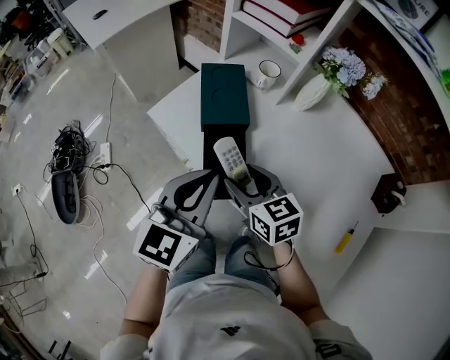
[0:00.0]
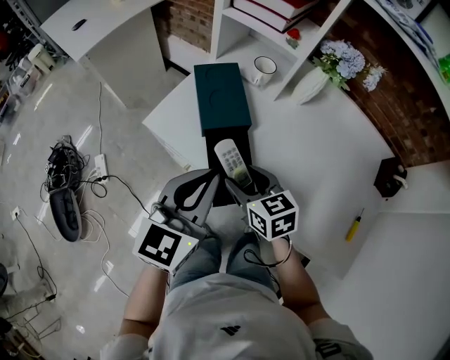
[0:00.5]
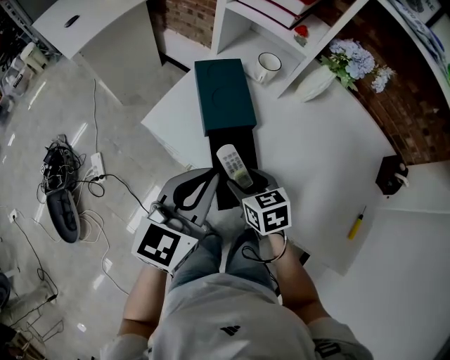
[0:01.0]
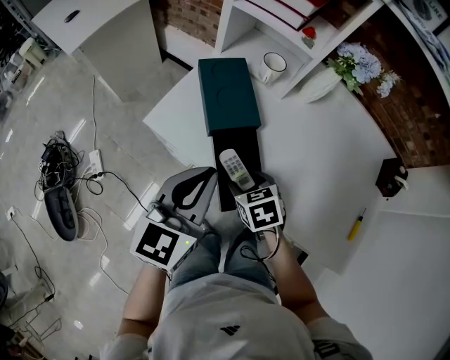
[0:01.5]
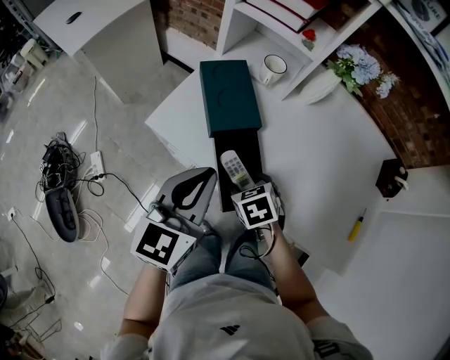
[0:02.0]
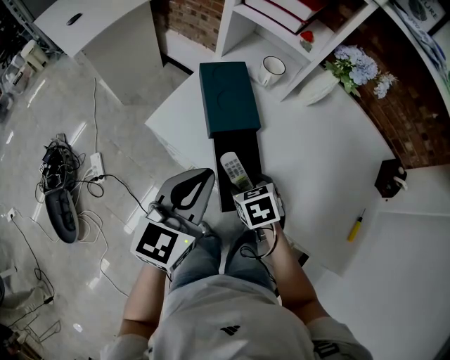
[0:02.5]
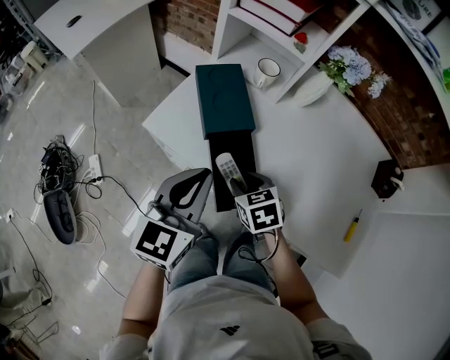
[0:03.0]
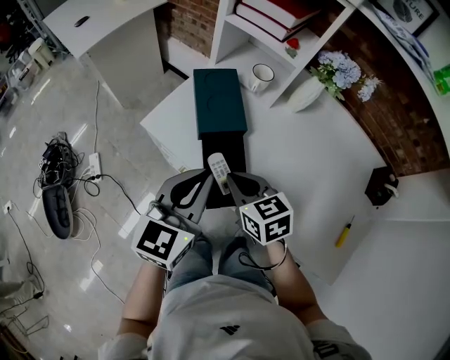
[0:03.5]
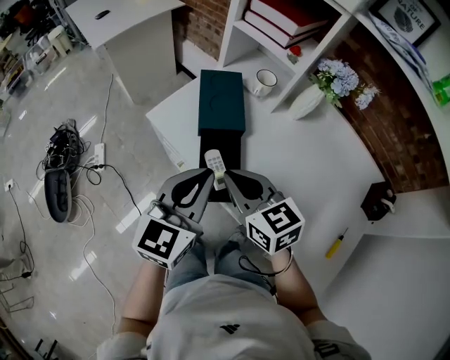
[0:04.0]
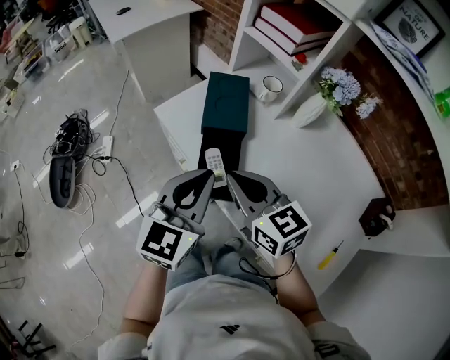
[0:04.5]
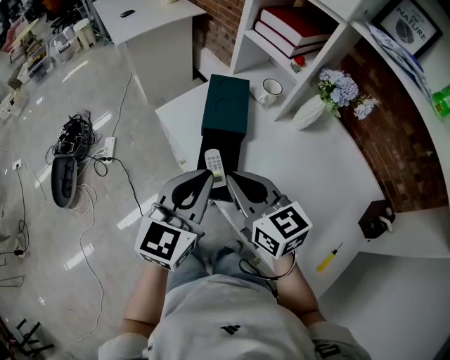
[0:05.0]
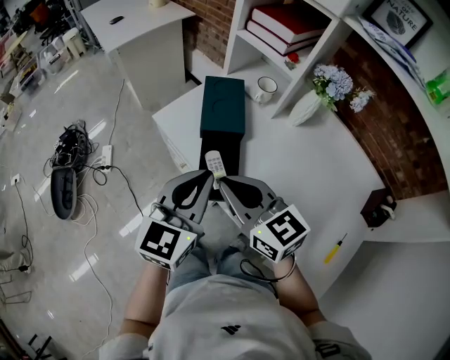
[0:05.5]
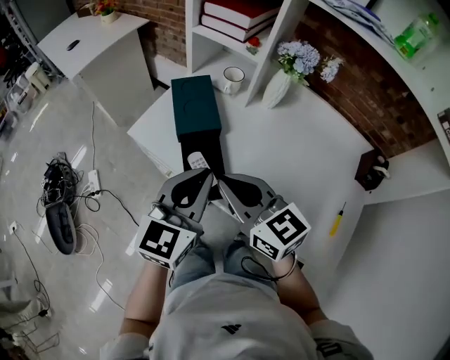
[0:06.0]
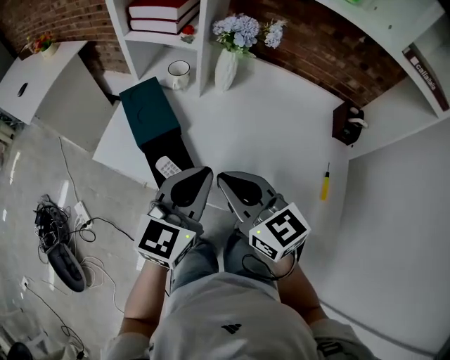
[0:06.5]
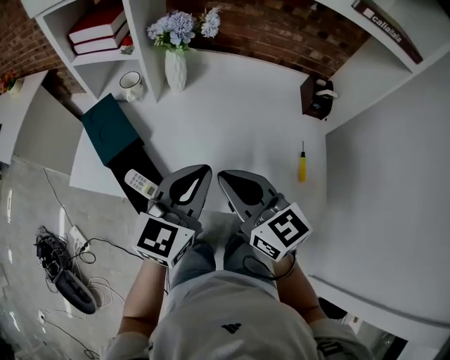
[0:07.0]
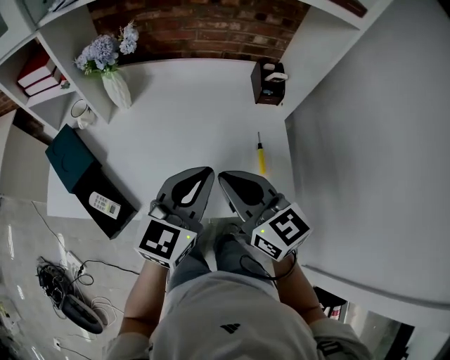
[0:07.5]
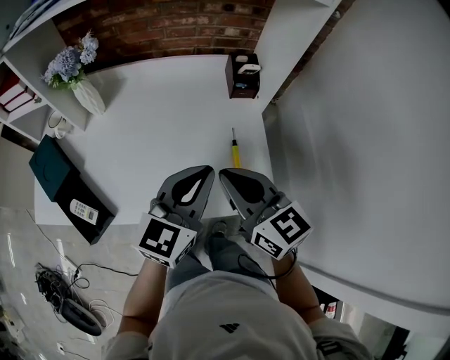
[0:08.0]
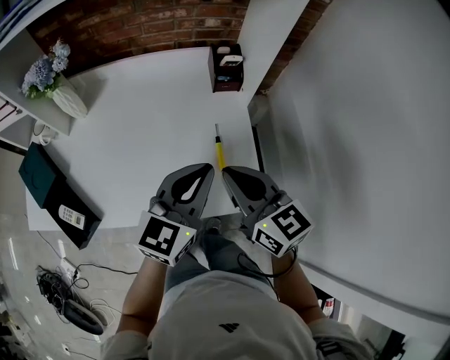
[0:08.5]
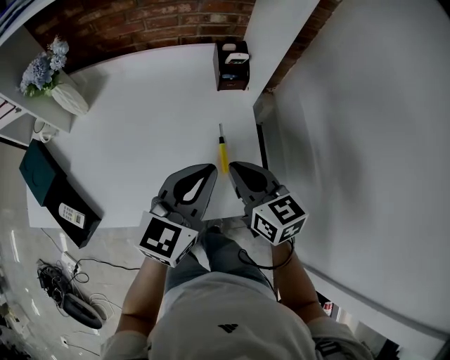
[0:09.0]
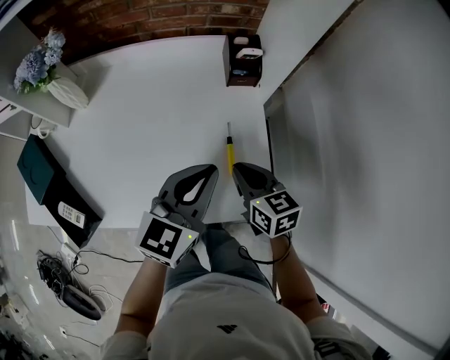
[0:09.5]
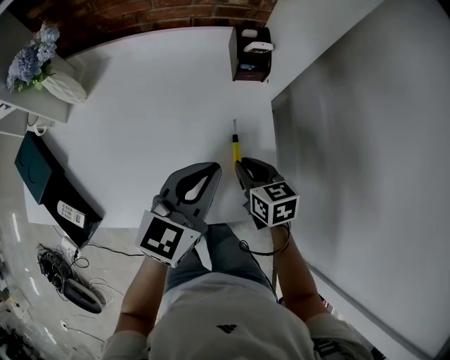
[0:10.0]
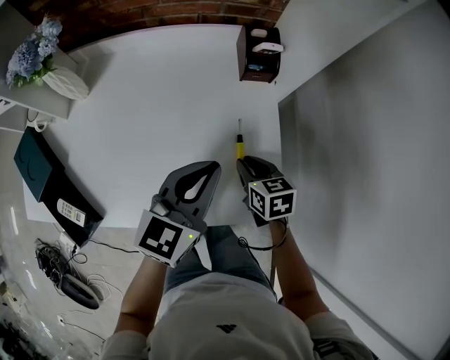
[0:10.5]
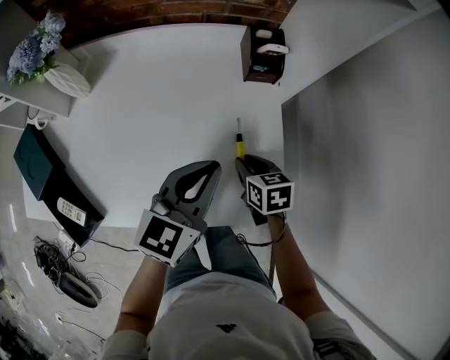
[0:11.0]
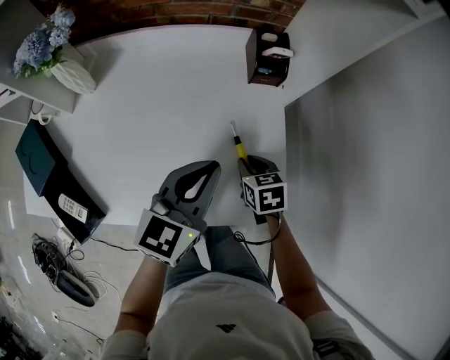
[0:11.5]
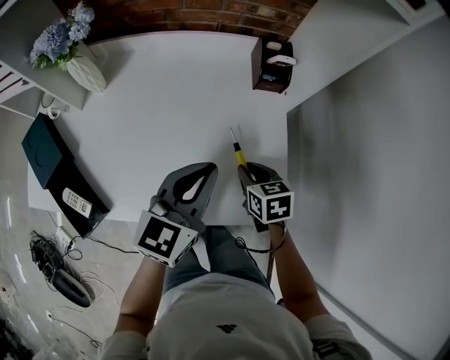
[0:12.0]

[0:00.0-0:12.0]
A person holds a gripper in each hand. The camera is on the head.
0:00.0 to 0:02.0: The right gripper moves downward, approximately 10 cm, and points its fingers about 30 degrees further downward; the left gripper moves to the left, approximately 5 cm.
0:02.0 to 0:04.0: The right gripper goes some 20 cm upward, tilts its fingers roughly 40 degrees upward, and closes, while the left gripper moves to the right, some 5 cm.
0:04.0 to 0:06.0: The right gripper goes about 5 cm upward.
0:06.0 to 0:08.0: The right gripper shifts by approximately 40 cm, and swivels roughly 40 degrees, while the left gripper changes place by roughly 40 cm, and rotates some 40 degrees.
0:08.0 to 0:10.0: The right gripper travels downward, to the right and forward by about 25 cm, and turns by about 30 degrees. The left gripper is displaced downward and forward by about 10 cm.
0:10.0 to 0:12.0: The left gripper travels to the left by roughly 5 cm.

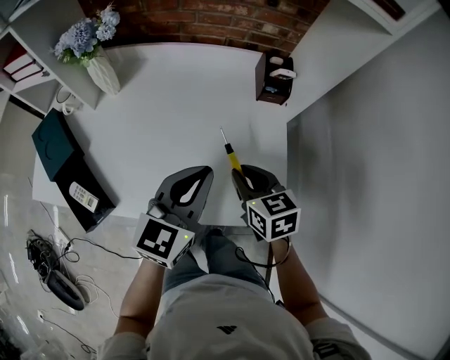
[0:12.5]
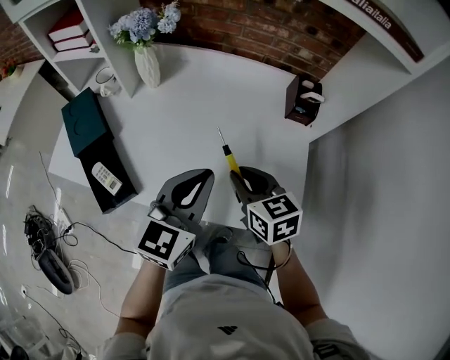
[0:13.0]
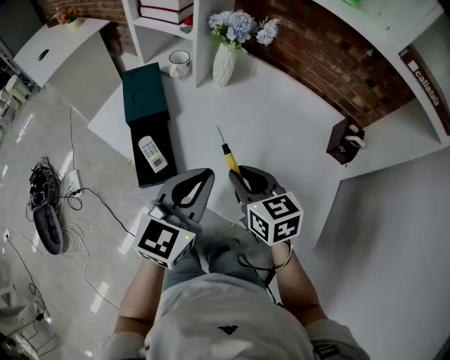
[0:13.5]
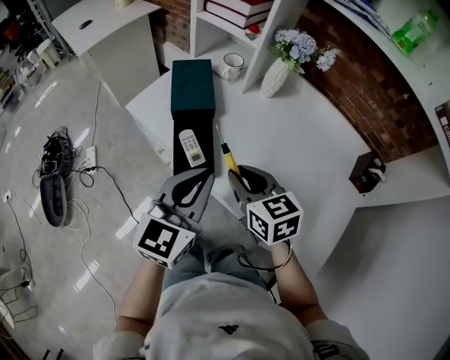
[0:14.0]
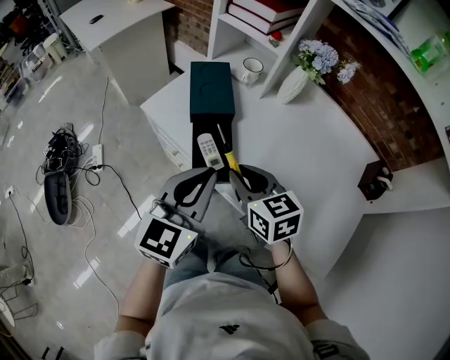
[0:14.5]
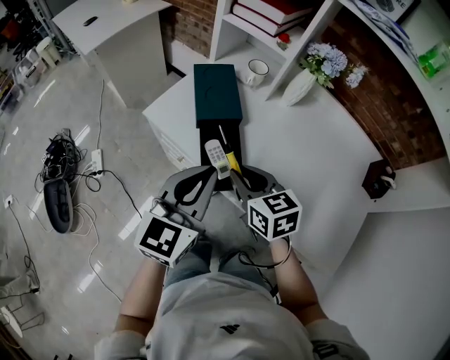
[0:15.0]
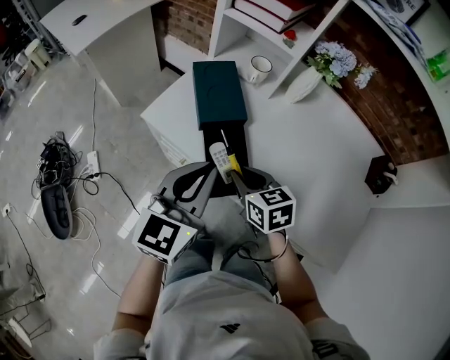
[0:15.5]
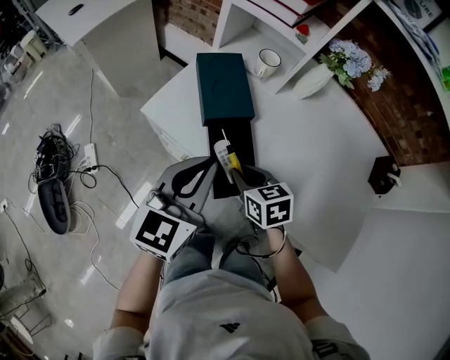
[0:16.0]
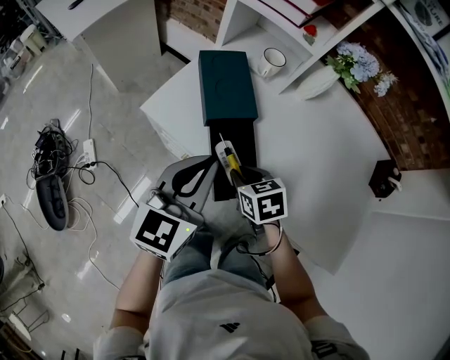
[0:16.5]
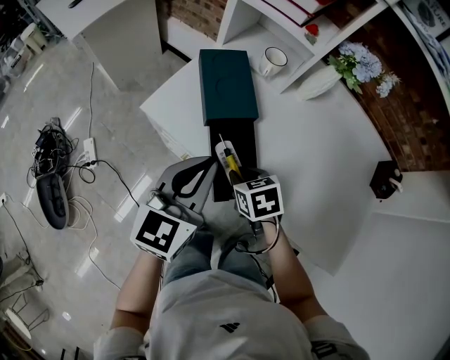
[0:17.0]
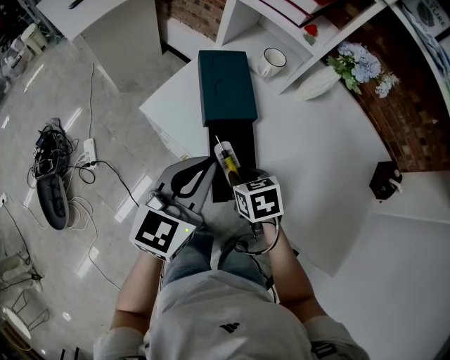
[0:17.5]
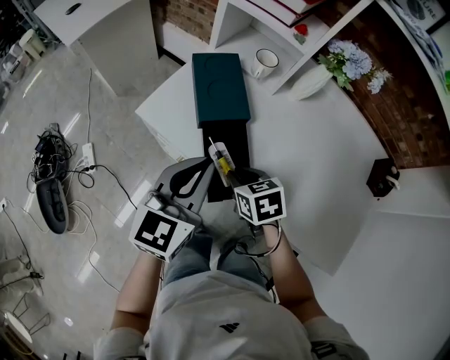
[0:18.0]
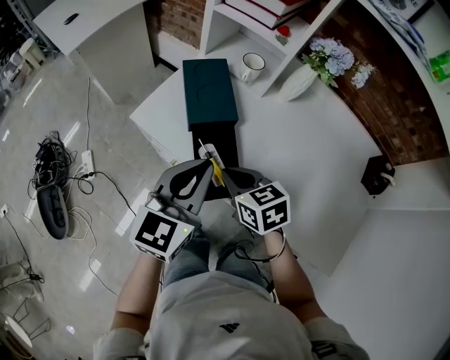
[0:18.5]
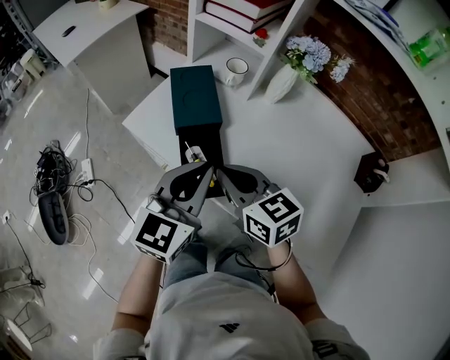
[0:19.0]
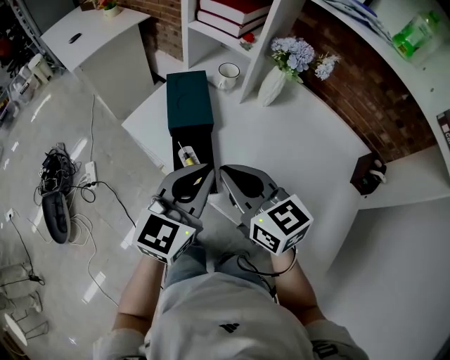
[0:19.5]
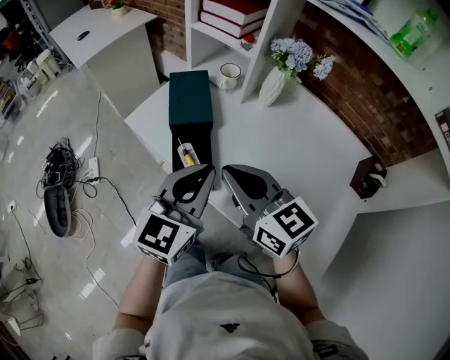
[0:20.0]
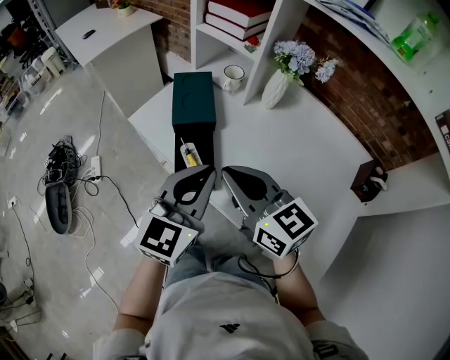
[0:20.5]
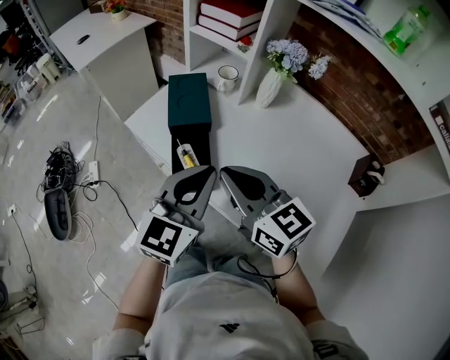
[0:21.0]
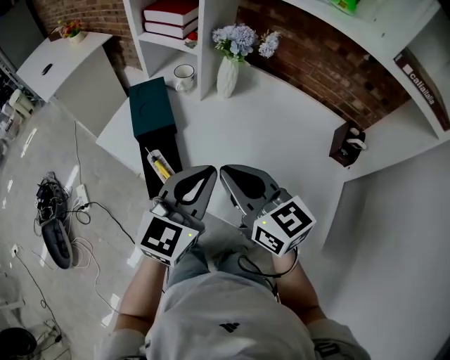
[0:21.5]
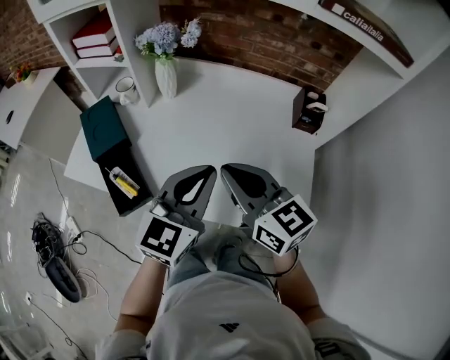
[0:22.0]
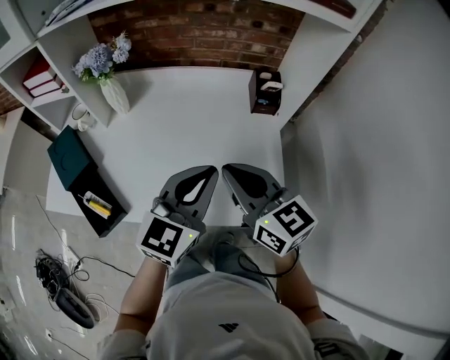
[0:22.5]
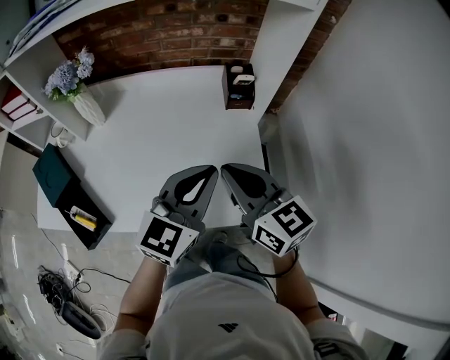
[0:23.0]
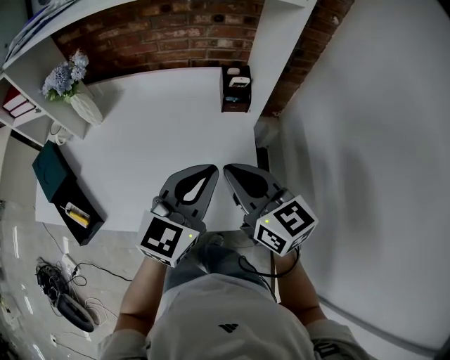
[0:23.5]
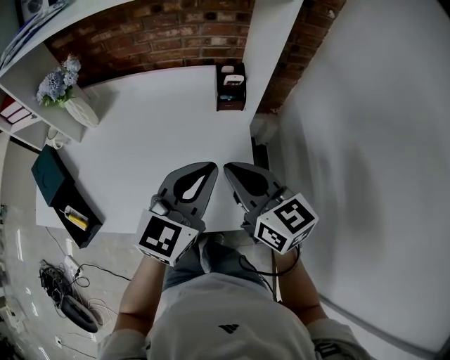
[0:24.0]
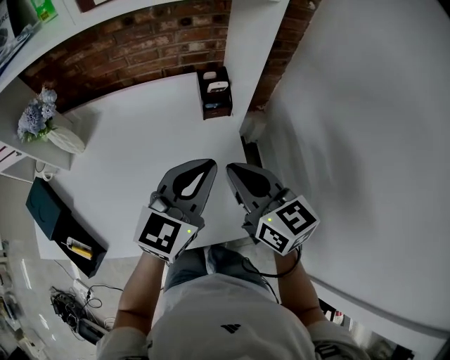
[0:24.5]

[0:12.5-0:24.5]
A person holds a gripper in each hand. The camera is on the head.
0:12.5 to 0:14.5: The right gripper moves roughly 40 cm, and turns by roughly 40 degrees. The left gripper changes place by approximately 40 cm, and swivels roughly 40 degrees.
0:14.5 to 0:16.5: The left gripper is displaced forward and to the left by some 10 cm. The right gripper is displaced downward and forward by approximately 15 cm, and swivels some 30 degrees.
0:16.5 to 0:18.5: The right gripper heads upward, covering some 5 cm.
0:18.5 to 0:20.5: The left gripper is displaced to the right, backward and upward by some 10 cm. The right gripper goes some 20 cm upward and backward, and angles its fingers upward, by some 30 degrees.
0:20.5 to 0:22.5: The left gripper moves some 30 cm, and turns by some 40 degrees, while the right gripper moves approximately 30 cm, and changes its angle by roughly 40 degrees.
0:22.5 to 0:24.5: Both grippers move to the right and forward, some 15 cm.

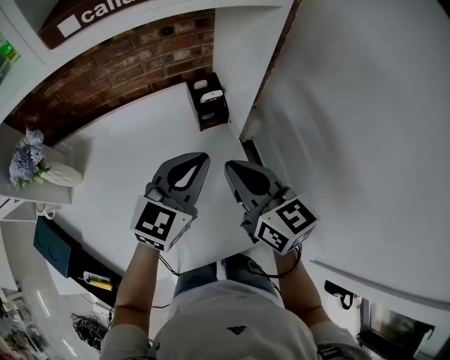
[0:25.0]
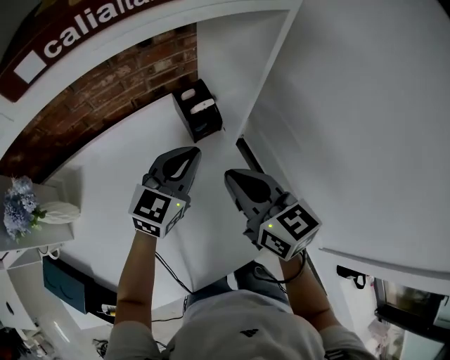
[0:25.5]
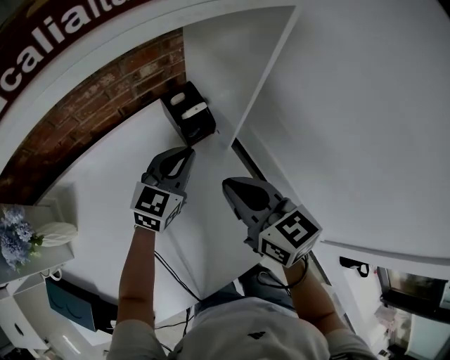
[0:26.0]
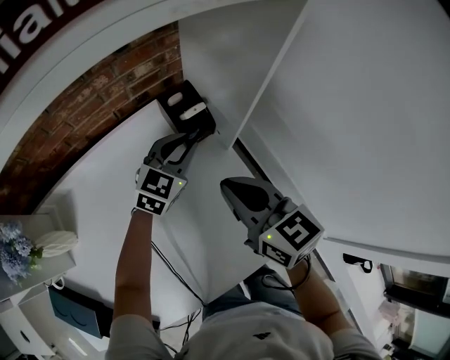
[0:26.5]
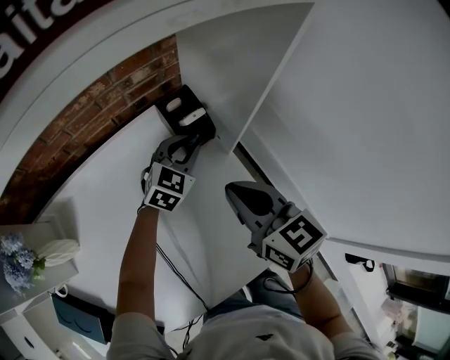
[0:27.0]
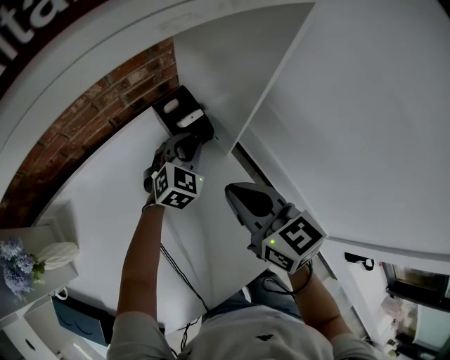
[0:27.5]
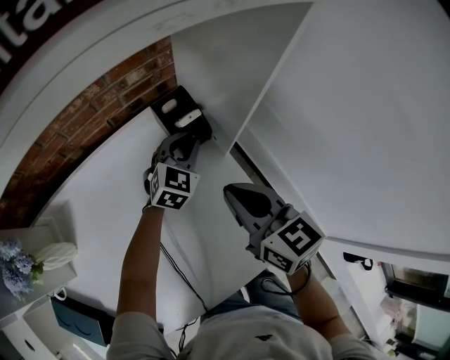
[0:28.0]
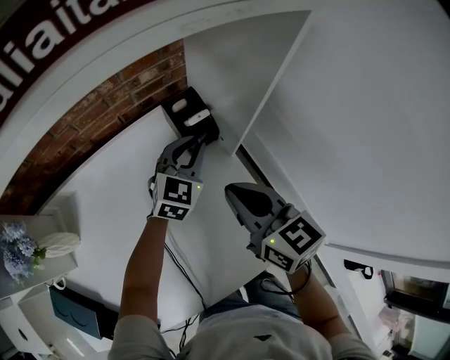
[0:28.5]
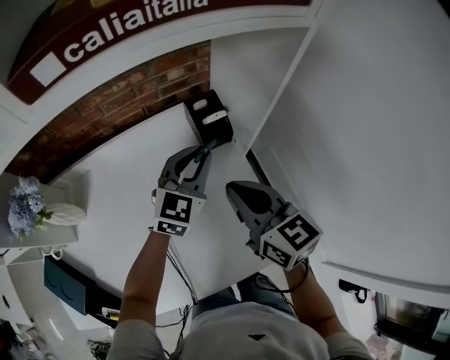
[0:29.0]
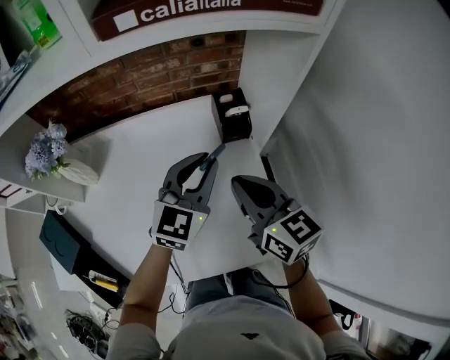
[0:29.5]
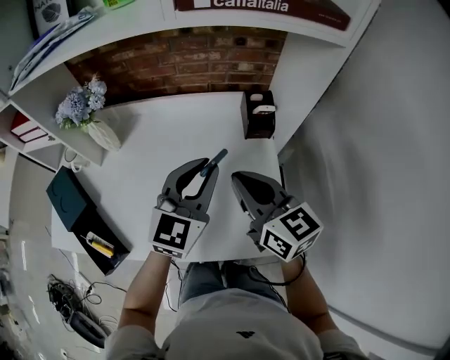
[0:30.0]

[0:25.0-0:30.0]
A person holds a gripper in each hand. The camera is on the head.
0:25.0 to 0:27.5: The left gripper shifts some 25 cm forward and downward, and turns by roughly 30 degrees. Meanwhile the right gripper goes some 5 cm downward and forward.
0:27.5 to 0:30.0: The left gripper moves approximately 35 cm, and swivels approximately 40 degrees. The right gripper shifts by some 15 cm, and changes its angle by some 30 degrees.
